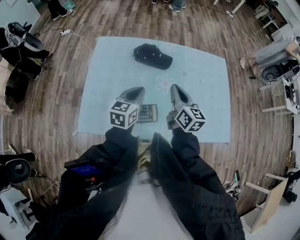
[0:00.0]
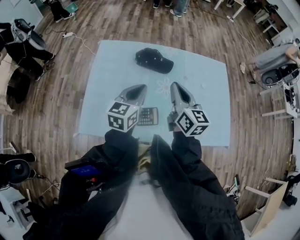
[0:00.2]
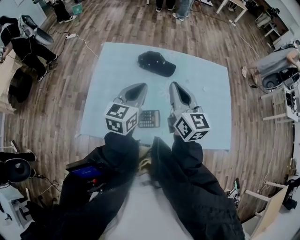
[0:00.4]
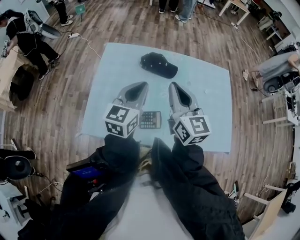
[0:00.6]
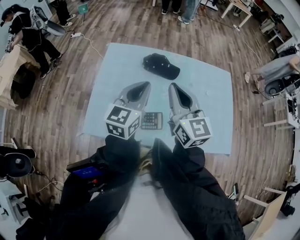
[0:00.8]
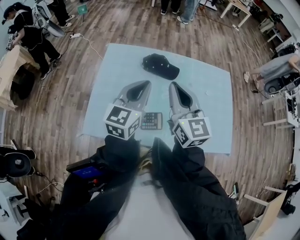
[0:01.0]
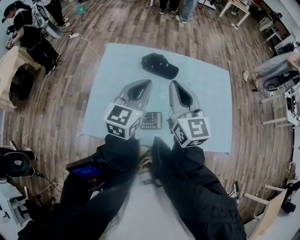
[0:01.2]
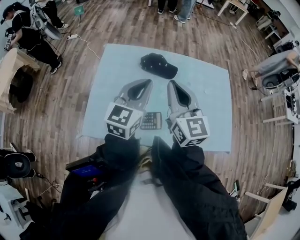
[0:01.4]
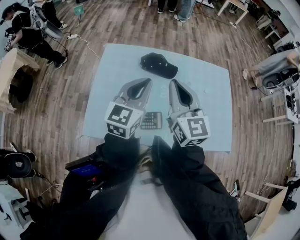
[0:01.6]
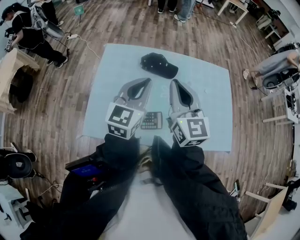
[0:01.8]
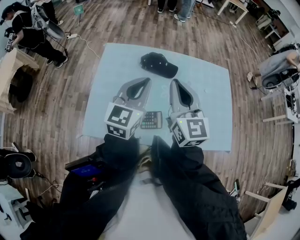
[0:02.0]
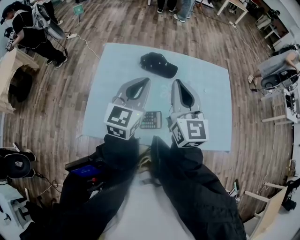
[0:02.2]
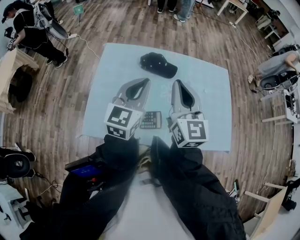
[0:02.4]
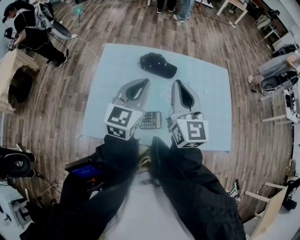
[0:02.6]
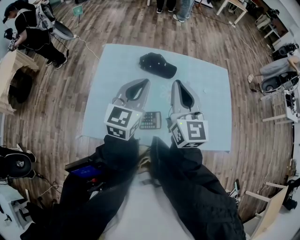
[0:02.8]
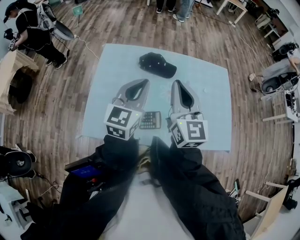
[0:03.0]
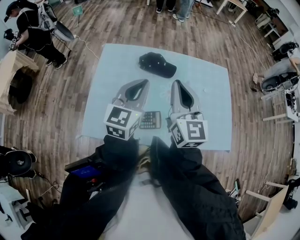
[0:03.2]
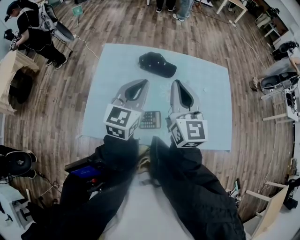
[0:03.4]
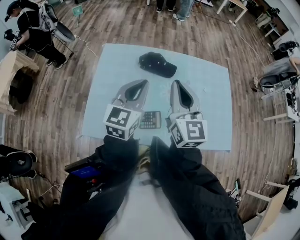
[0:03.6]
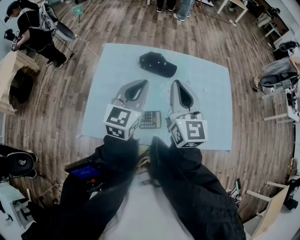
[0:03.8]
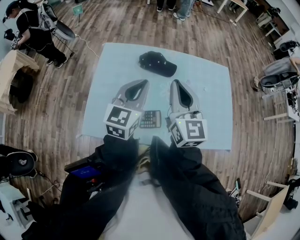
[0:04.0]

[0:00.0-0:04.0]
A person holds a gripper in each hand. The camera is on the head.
0:00.0 to 0:01.4: The left gripper travels upward by about 15 cm, and changes its angle by approximately 20 degrees; the right gripper heads upward and to the left, covering some 15 cm, and changes its angle by approximately 30 degrees.
0:01.4 to 0:02.6: The grippers stay close to where they were, moving slightly.
0:02.6 to 0:04.0: The two grippers keep their place.

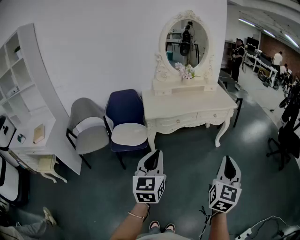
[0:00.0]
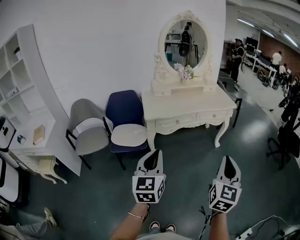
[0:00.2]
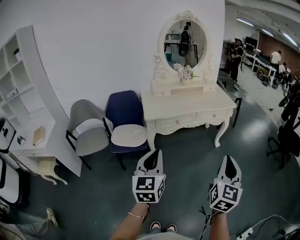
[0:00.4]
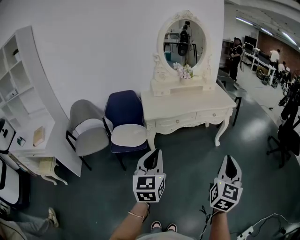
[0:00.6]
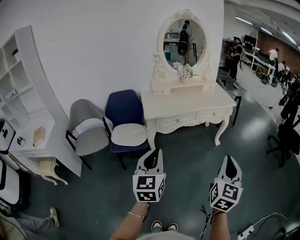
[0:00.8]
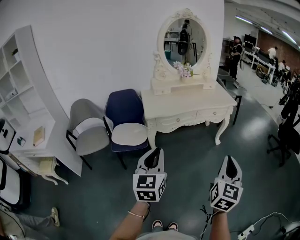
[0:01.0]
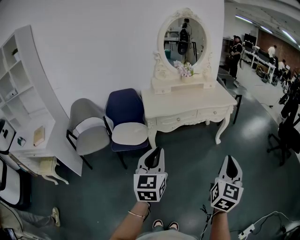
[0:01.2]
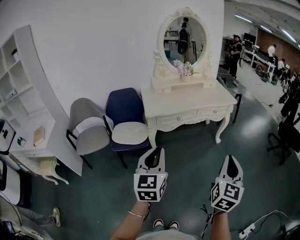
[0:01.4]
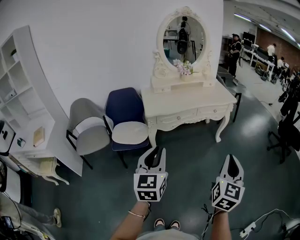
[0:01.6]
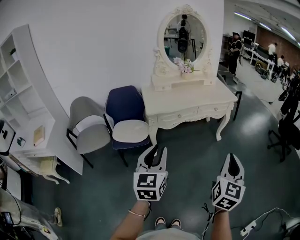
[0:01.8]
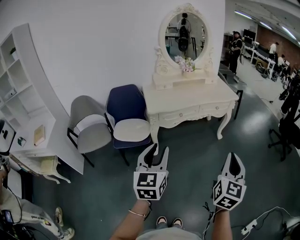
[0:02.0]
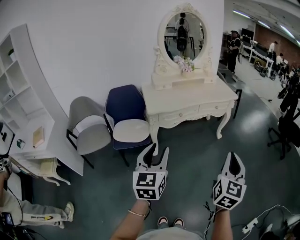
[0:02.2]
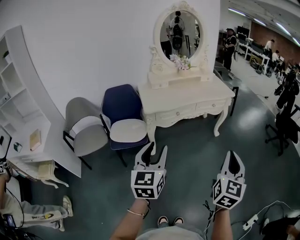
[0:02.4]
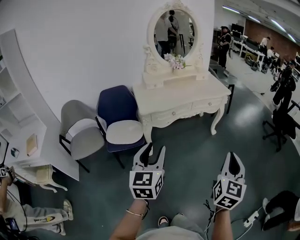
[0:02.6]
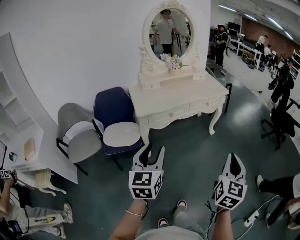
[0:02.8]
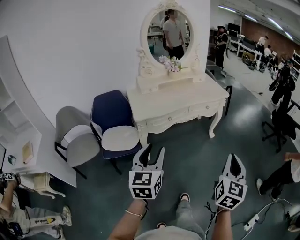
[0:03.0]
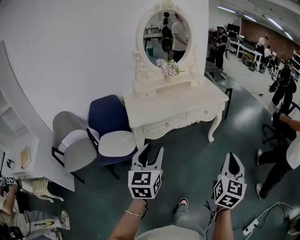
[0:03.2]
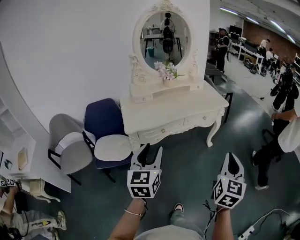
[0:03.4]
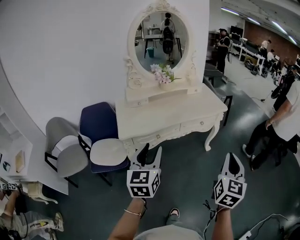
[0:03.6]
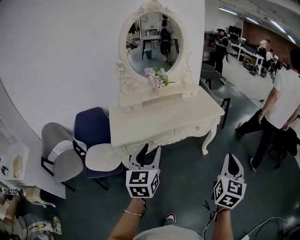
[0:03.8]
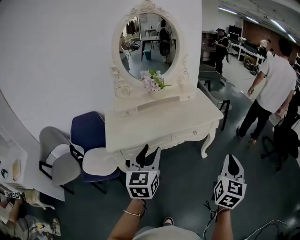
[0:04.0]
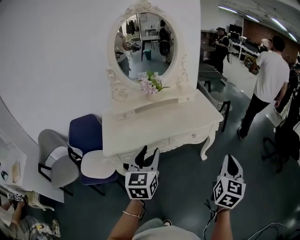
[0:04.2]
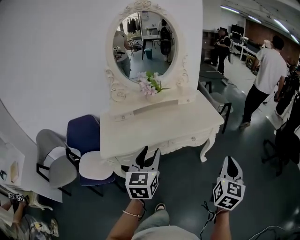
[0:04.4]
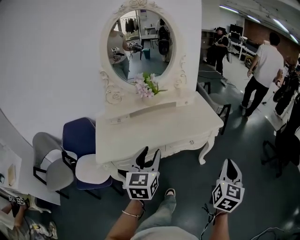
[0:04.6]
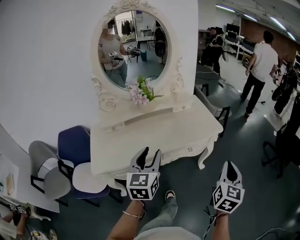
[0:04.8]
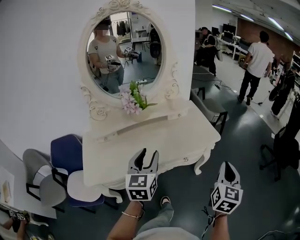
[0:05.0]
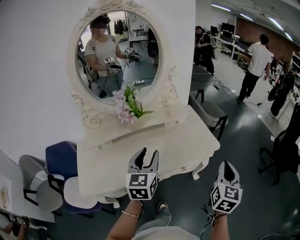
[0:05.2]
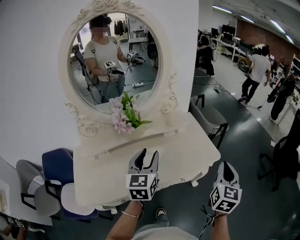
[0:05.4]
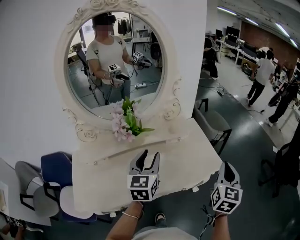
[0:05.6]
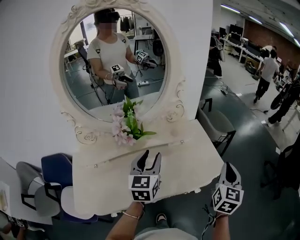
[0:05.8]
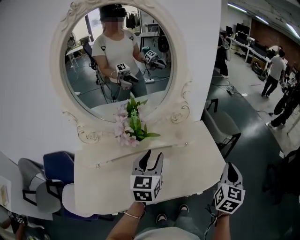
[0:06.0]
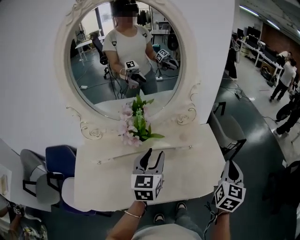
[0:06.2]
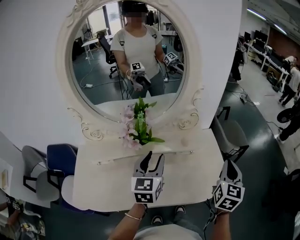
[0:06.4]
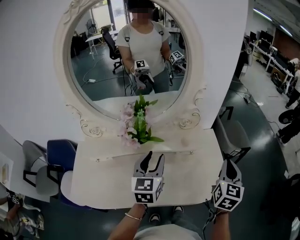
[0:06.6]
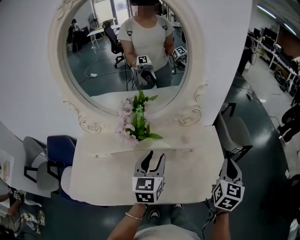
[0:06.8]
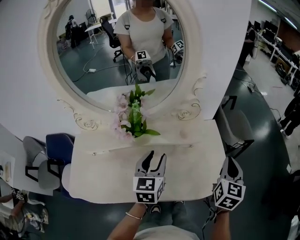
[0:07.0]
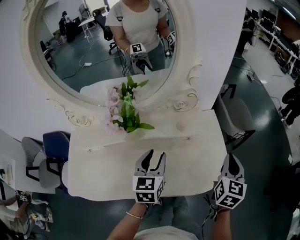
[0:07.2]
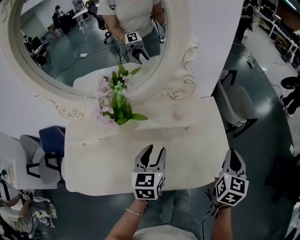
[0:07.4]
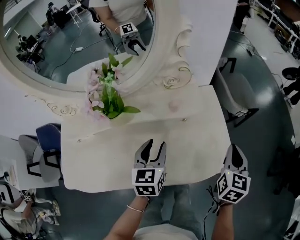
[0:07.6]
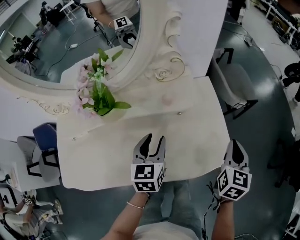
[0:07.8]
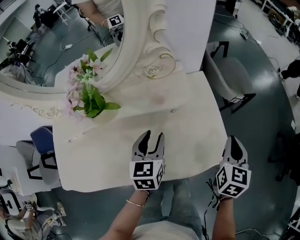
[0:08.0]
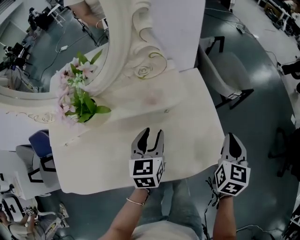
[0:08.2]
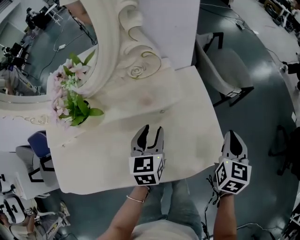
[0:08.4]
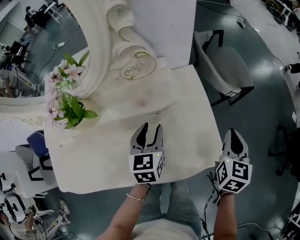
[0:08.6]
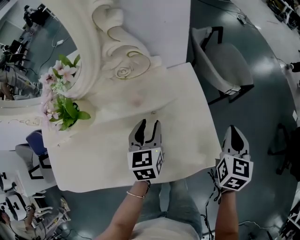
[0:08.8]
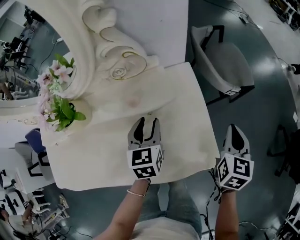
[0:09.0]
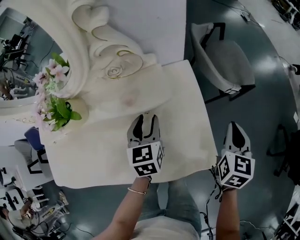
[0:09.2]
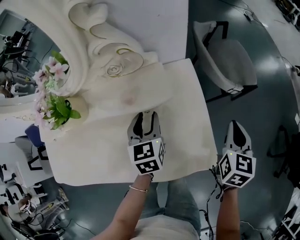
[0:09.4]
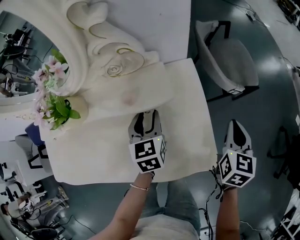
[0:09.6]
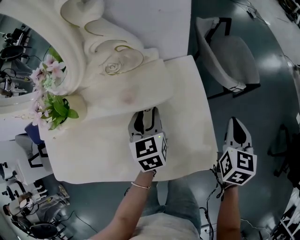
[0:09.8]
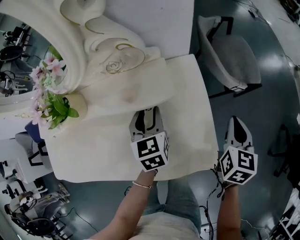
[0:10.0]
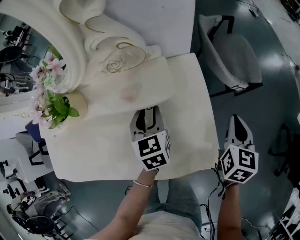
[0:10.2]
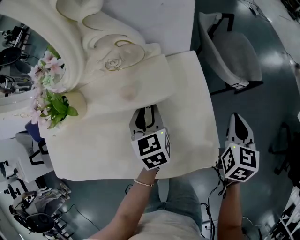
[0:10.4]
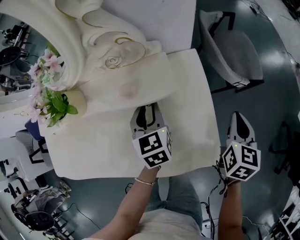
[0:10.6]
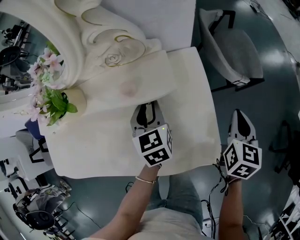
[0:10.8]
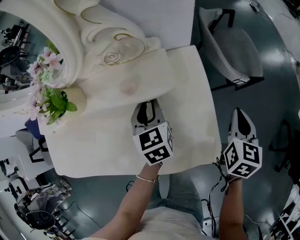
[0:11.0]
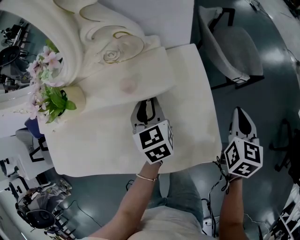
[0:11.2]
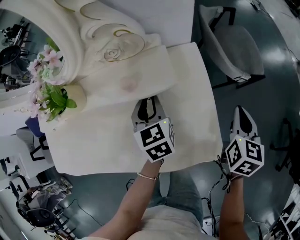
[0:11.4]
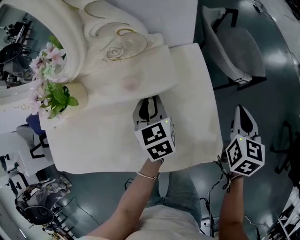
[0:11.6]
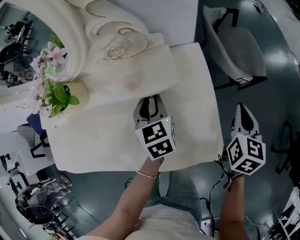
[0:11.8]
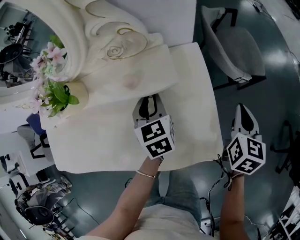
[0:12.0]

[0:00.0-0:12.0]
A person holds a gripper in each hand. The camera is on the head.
0:00.0 to 0:01.6: There are only small adjustments of the grippers.
0:01.6 to 0:03.0: The right gripper is displaced forward by approximately 5 cm. Meanwhile the left gripper travels forward by some 10 cm, and opens its fingers.
0:03.0 to 0:04.4: Both grippers move forward, about 35 cm.
0:04.4 to 0:06.0: Both grippers are carried forward, approximately 40 cm.
0:06.0 to 0:07.6: The left gripper moves downward and to the right, some 15 cm, while the right gripper shifts roughly 15 cm downward and forward.
0:07.6 to 0:09.0: The left gripper moves forward, to the right and downward, roughly 15 cm, while the right gripper travels to the right, forward and downward by roughly 15 cm.
0:09.0 to 0:10.4: The grippers make only small movements.
0:10.4 to 0:12.0: Both grippers stay put.

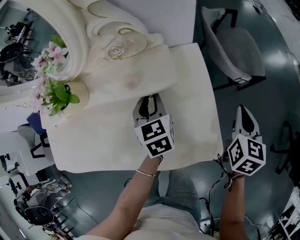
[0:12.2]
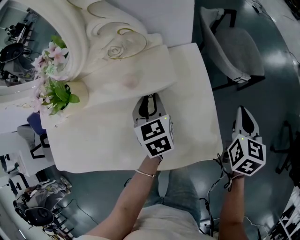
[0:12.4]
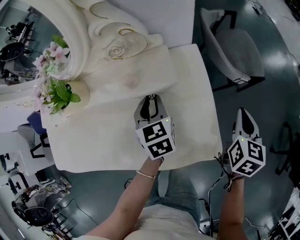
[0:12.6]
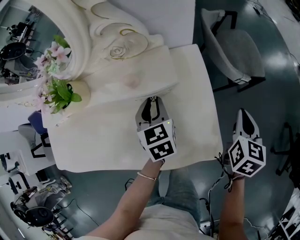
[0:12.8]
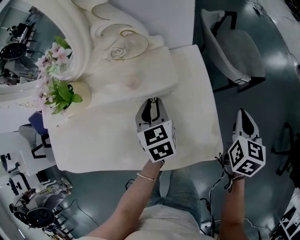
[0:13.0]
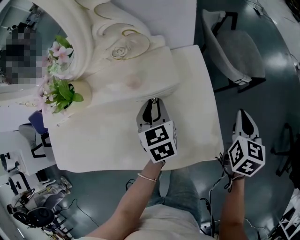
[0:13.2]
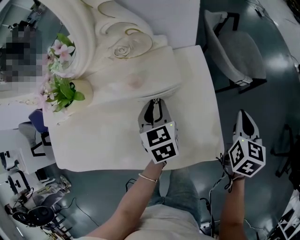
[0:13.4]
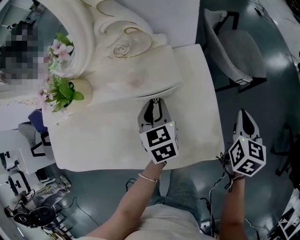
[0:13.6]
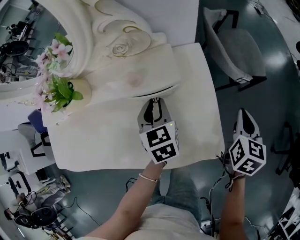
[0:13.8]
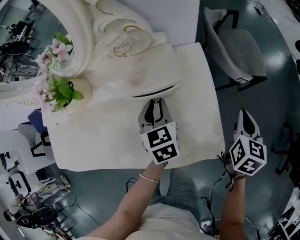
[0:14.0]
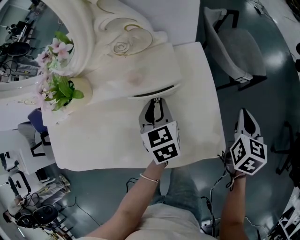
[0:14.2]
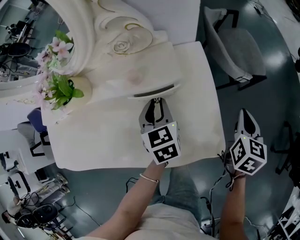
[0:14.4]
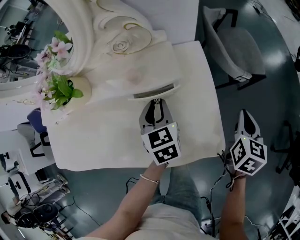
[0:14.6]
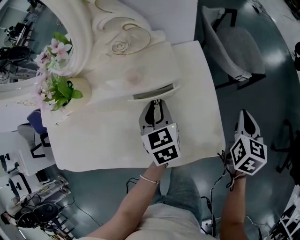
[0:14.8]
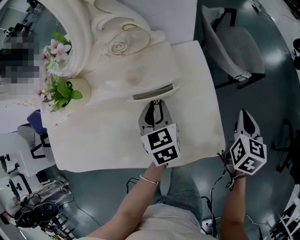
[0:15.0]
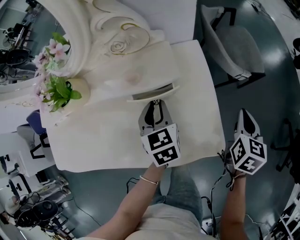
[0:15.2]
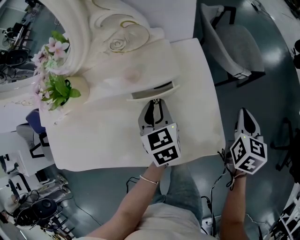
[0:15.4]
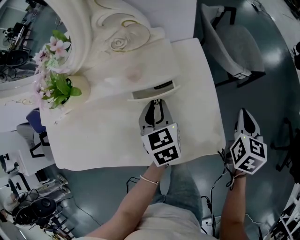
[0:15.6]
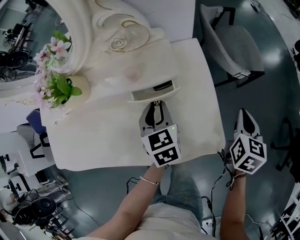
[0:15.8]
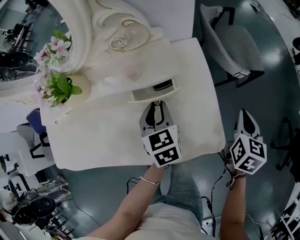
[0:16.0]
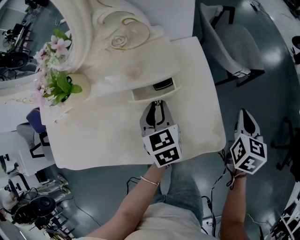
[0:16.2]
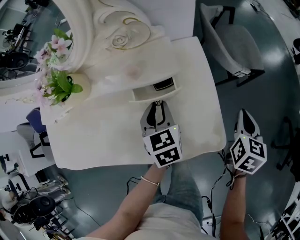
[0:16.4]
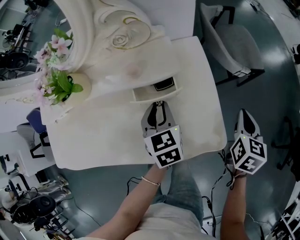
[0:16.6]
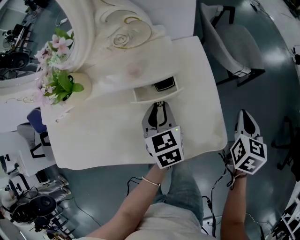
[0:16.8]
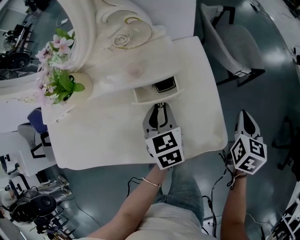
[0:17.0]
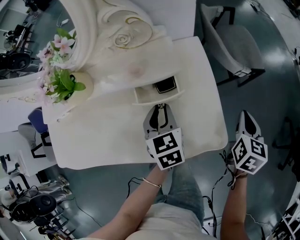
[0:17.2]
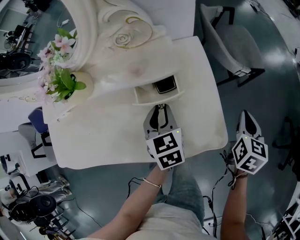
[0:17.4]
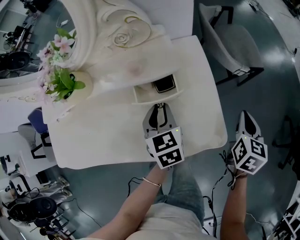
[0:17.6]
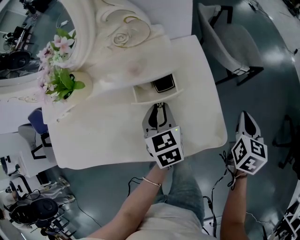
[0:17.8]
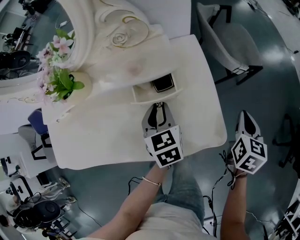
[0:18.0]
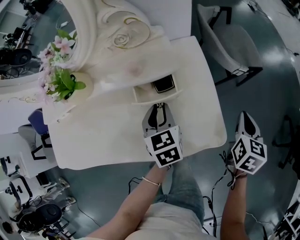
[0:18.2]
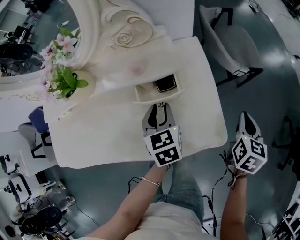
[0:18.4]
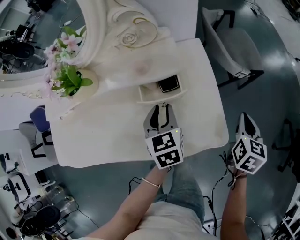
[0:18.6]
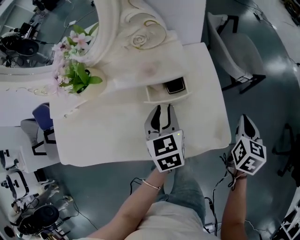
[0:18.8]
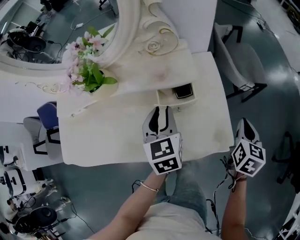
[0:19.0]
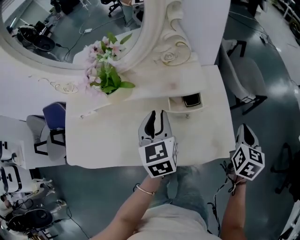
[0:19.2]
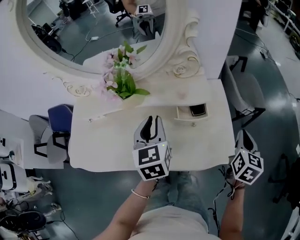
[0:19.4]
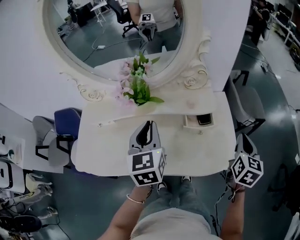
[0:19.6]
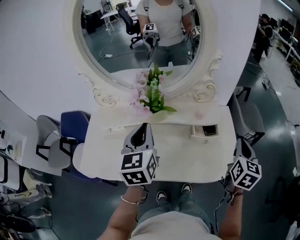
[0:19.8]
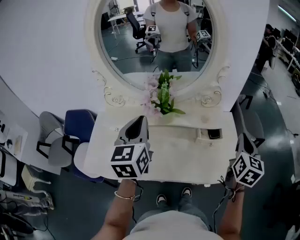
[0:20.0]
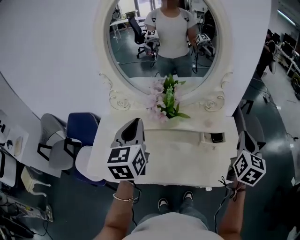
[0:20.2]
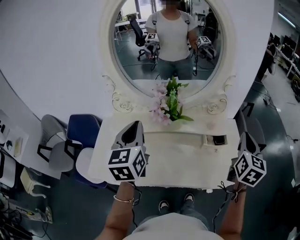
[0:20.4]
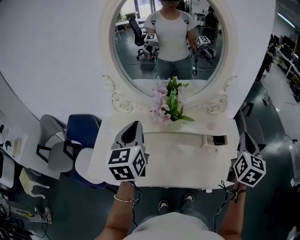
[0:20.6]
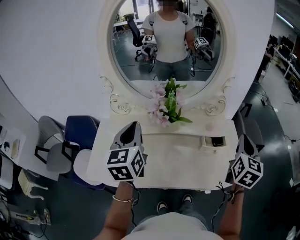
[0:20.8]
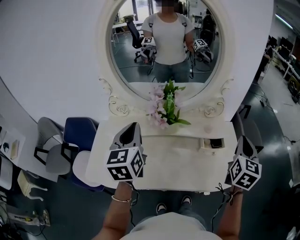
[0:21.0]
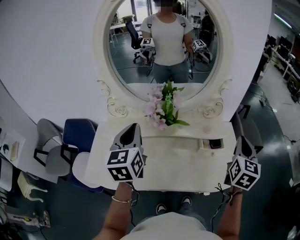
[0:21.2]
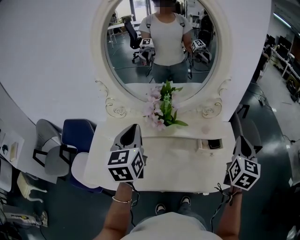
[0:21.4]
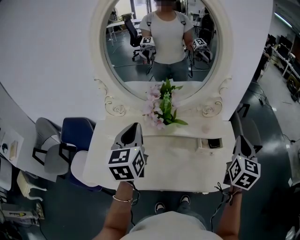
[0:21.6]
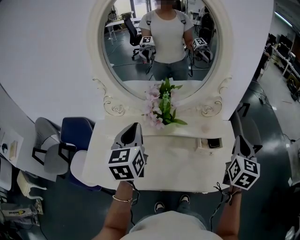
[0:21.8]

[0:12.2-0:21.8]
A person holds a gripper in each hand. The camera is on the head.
0:12.2 to 0:15.4: The grippers move only a little.
0:15.4 to 0:18.6: The grippers move only a little.
0:18.6 to 0:20.2: The left gripper goes about 50 cm to the left and upward, swivels approximately 30 degrees, and closes, while the right gripper shifts approximately 35 cm upward and to the left, and turns by about 30 degrees.
0:20.2 to 0:21.8: There are only small adjustments of the grippers.
